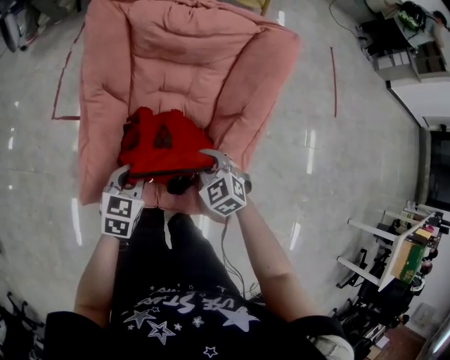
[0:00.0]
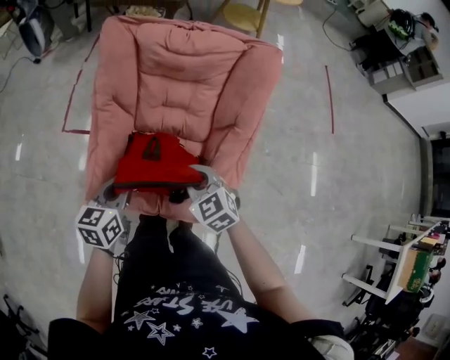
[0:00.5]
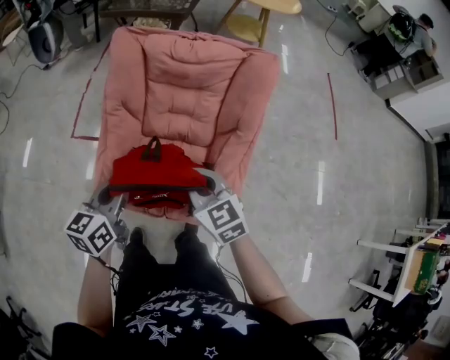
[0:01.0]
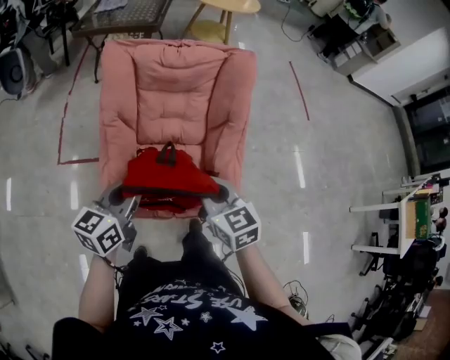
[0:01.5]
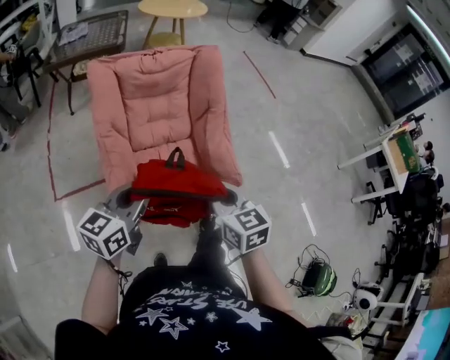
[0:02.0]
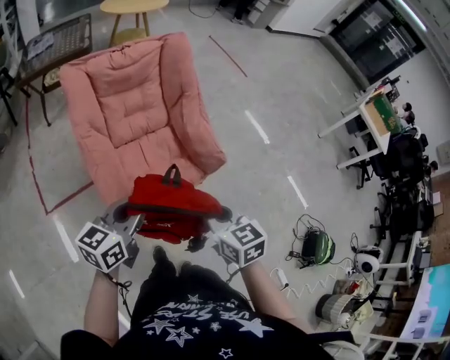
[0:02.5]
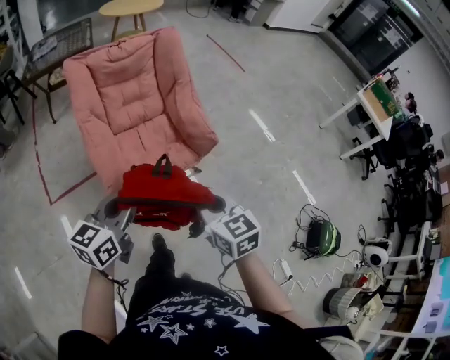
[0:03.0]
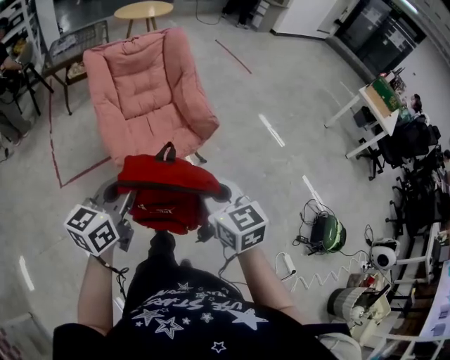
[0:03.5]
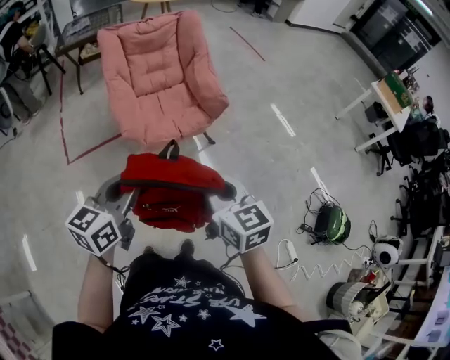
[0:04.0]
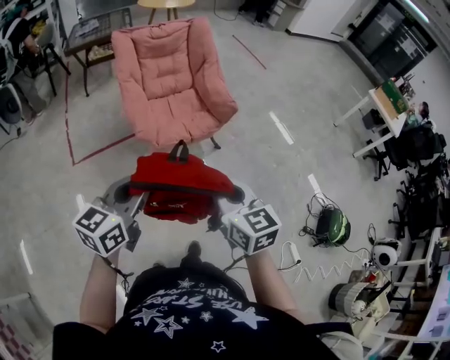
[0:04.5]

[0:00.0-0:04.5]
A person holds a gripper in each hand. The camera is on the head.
0:00.0 to 0:02.0: The right gripper shifts by approximately 35 cm, and changes its angle by some 60 degrees. Meanwhile the left gripper shifts roughly 25 cm upward, and tips its fingers upward by about 30 degrees.
0:02.0 to 0:04.5: Both grippers are carried backward, approximately 40 cm.

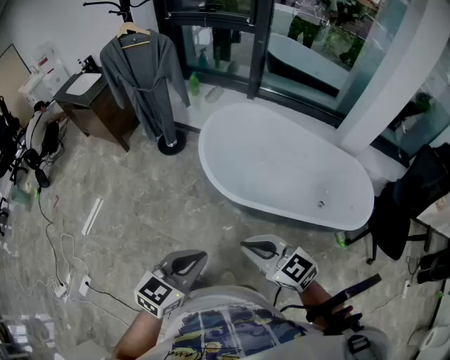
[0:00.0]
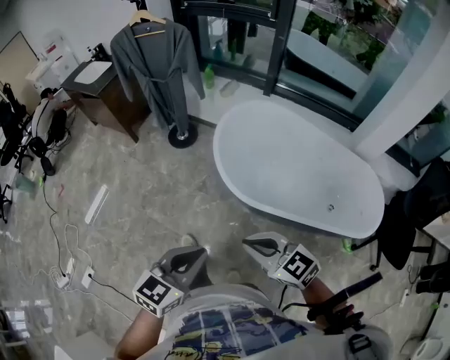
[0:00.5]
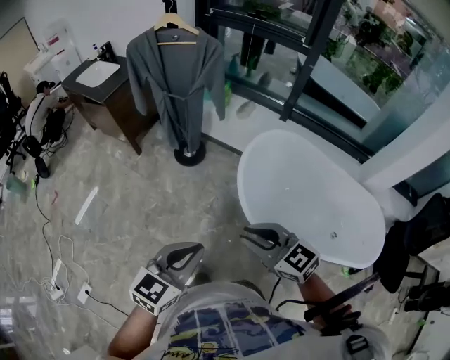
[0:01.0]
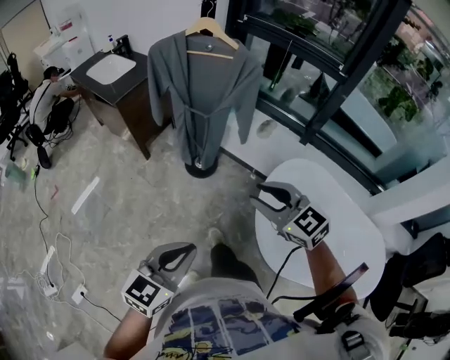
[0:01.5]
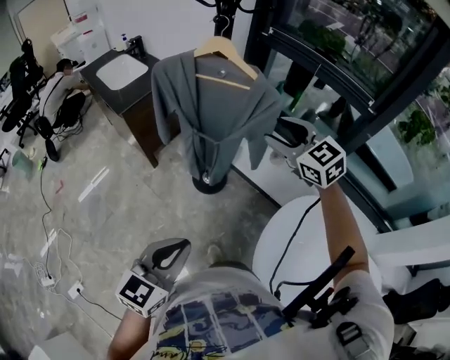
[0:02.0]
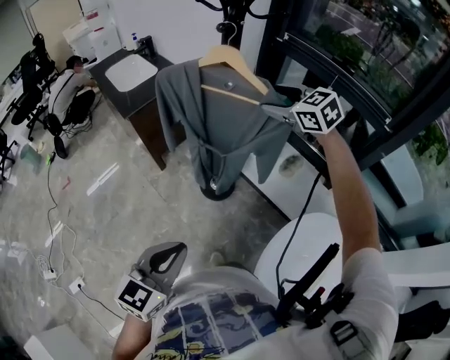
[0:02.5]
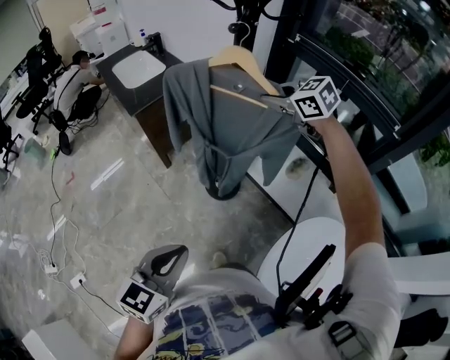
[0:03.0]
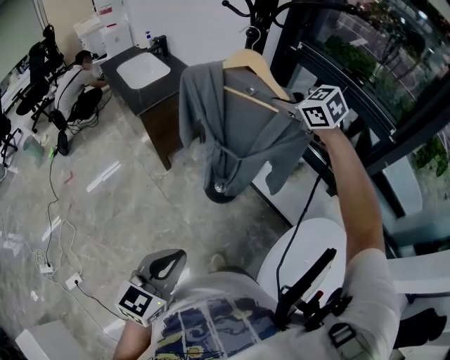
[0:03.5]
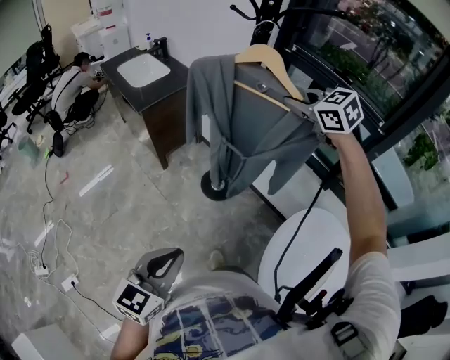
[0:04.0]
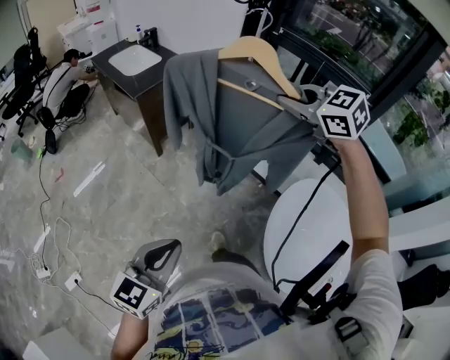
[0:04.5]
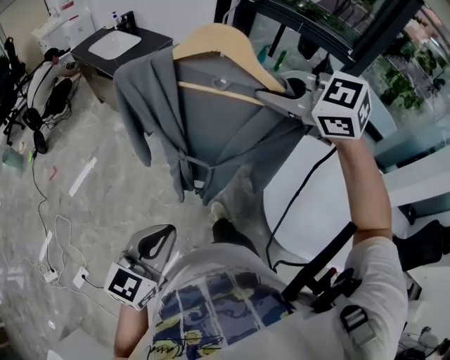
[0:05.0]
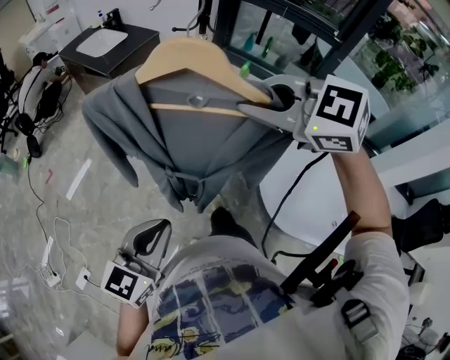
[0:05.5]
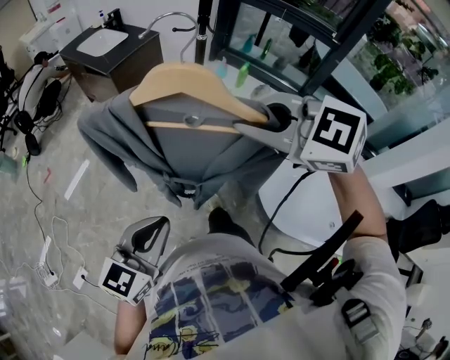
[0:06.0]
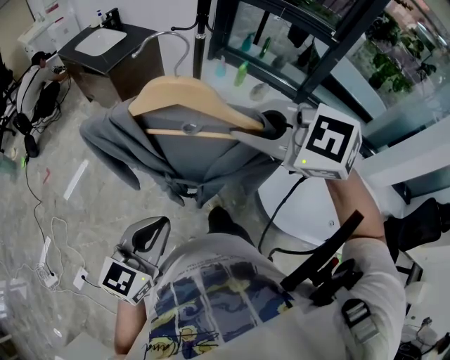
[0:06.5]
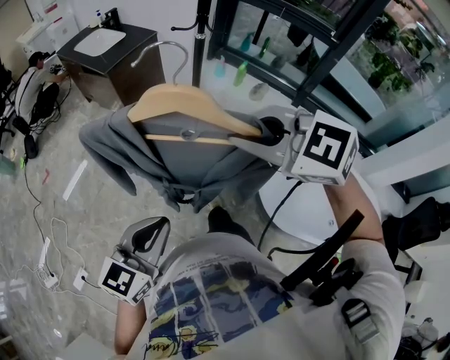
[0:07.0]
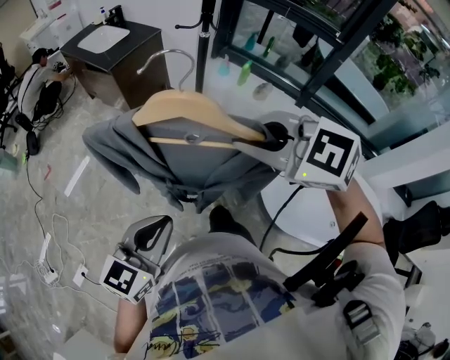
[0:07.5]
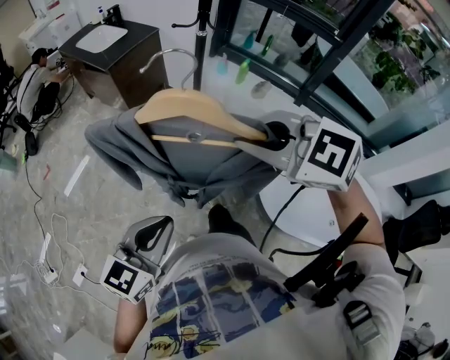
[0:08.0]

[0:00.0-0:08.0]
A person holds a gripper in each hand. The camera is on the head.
0:00.0 to 0:02.0: The two grippers travel together, forward, roughly 70 cm. The right gripper changes its angle by some 20 degrees, and opens. The left gripper rotates approximately 20 degrees.
0:02.0 to 0:04.0: The left gripper moves to the left, about 5 cm, and travels forward and back again, approximately 5 cm each way; the right gripper goes approximately 10 cm forward and upward, and closes its fingers.
0:04.0 to 0:06.0: The right gripper travels backward and to the left by roughly 50 cm. Meanwhile the left gripper moves backward and to the left, about 20 cm.
0:06.0 to 0:08.0: The grippers stay close to where they were, moving slightly.

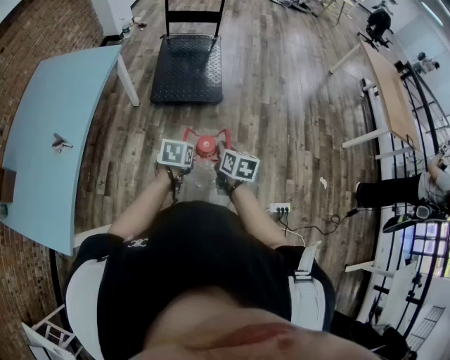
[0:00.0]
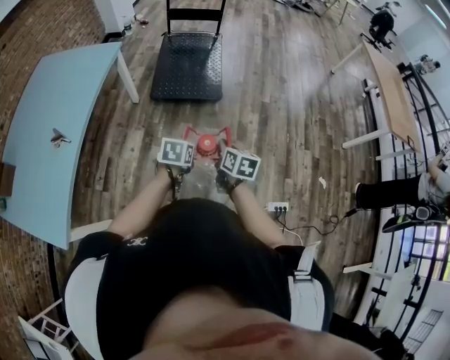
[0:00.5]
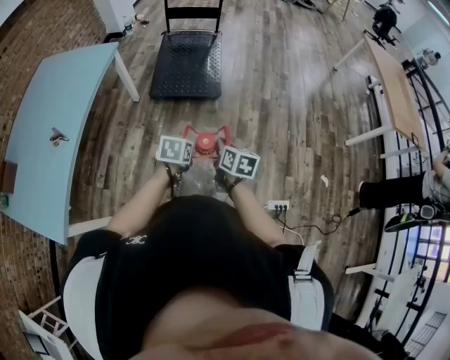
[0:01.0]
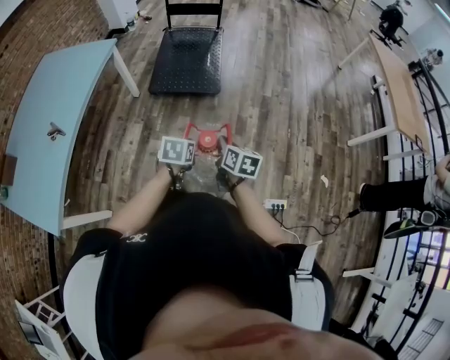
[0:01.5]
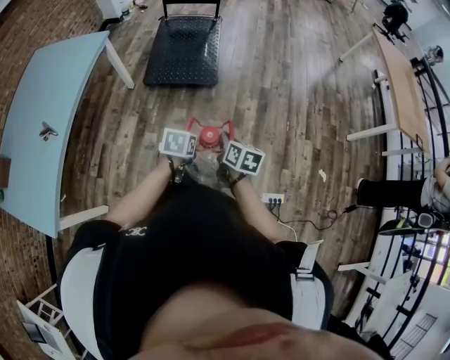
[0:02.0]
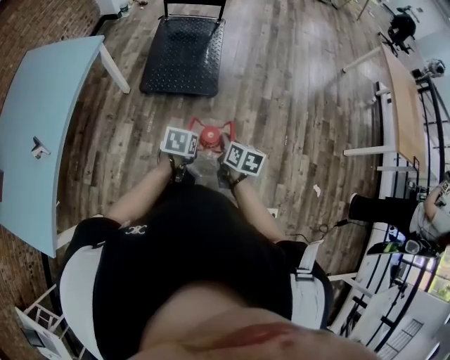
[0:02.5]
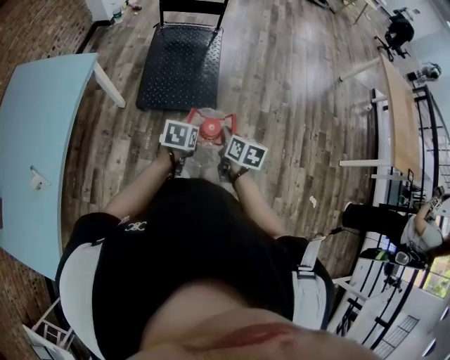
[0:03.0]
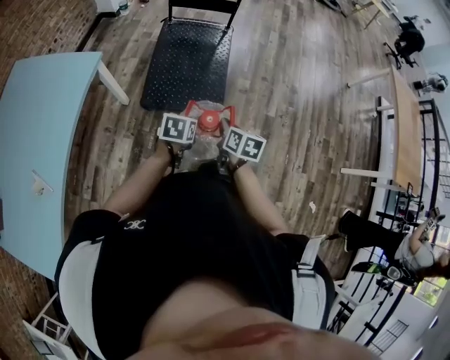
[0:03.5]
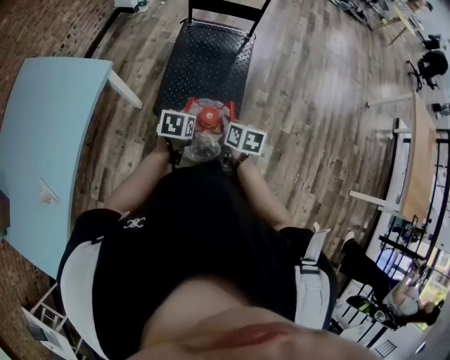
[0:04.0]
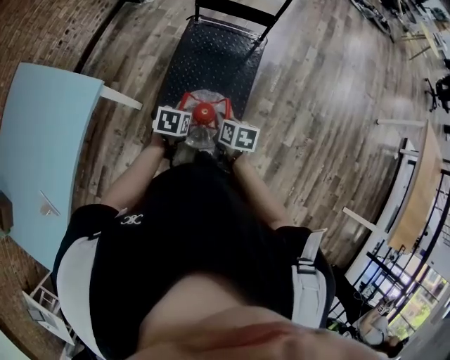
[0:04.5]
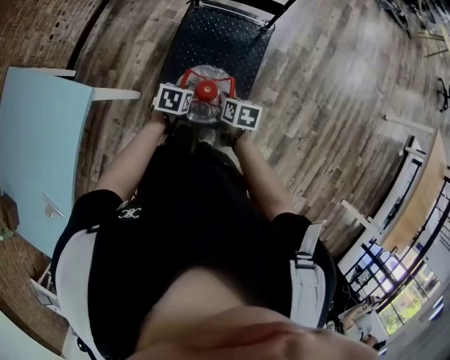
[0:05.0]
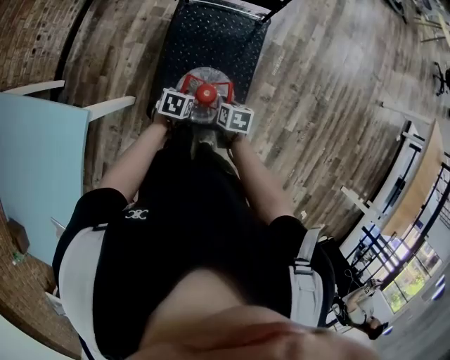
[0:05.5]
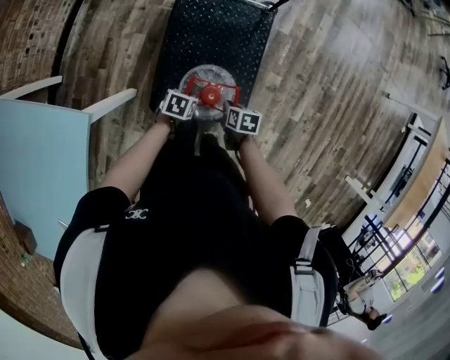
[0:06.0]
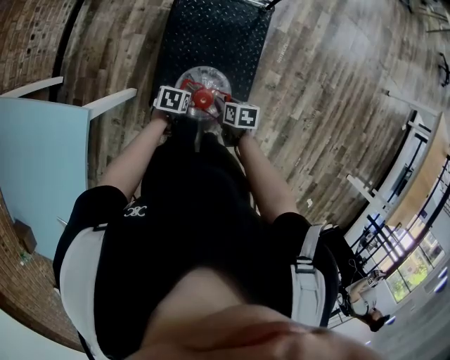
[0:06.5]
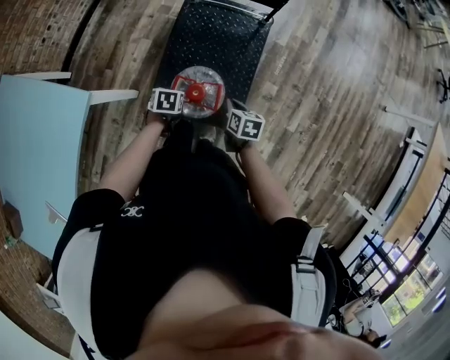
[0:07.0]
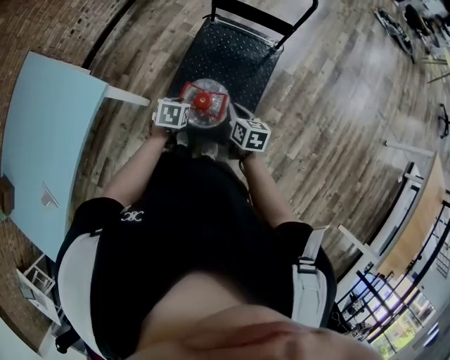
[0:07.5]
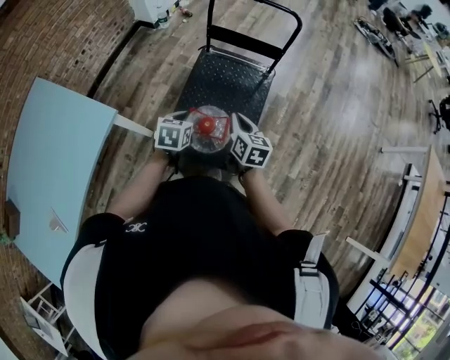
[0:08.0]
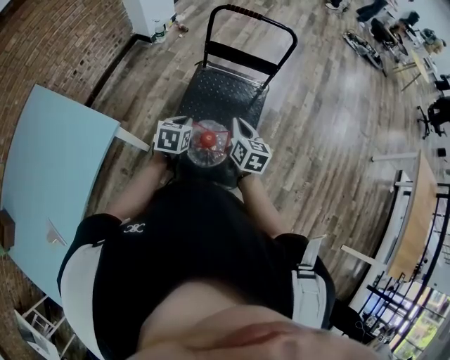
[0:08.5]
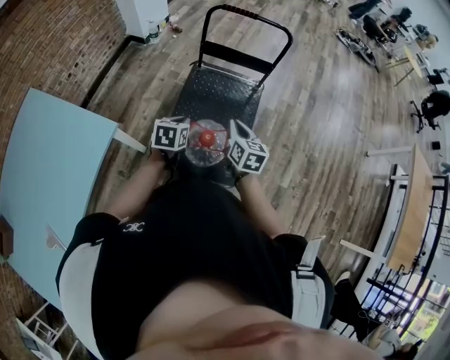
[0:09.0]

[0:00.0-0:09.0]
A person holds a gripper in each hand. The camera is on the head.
0:00.0 to 0:02.0: The grippers both shift to the right by approximately 10 cm.
0:02.0 to 0:04.5: The pair of grippers is taken forward, approximately 60 cm. The right gripper swivels roughly 20 degrees.
0:04.5 to 0:07.0: The right gripper shifts by roughly 15 cm, and opens, then closes once more; the left gripper moves roughly 15 cm.
0:07.0 to 0:09.0: The two grippers go roughly 20 cm upward. The left gripper changes its angle by roughly 30 degrees, while the right gripper rotates about 30 degrees.

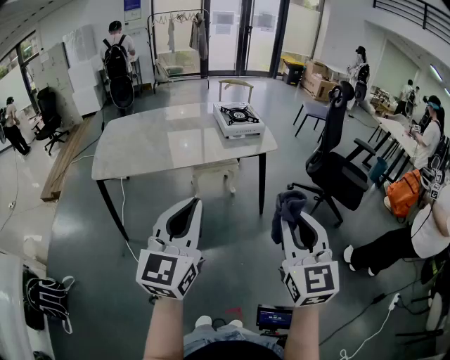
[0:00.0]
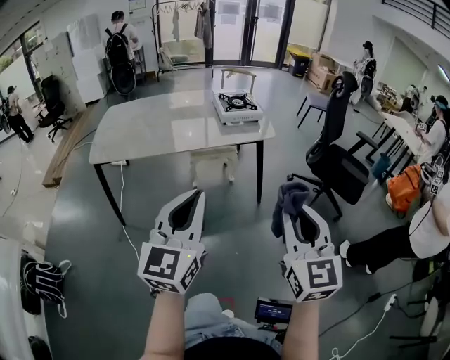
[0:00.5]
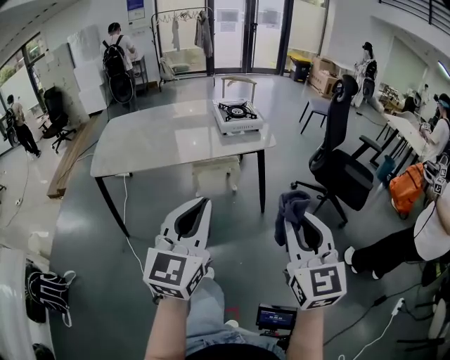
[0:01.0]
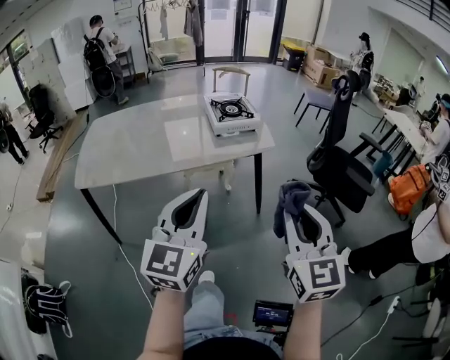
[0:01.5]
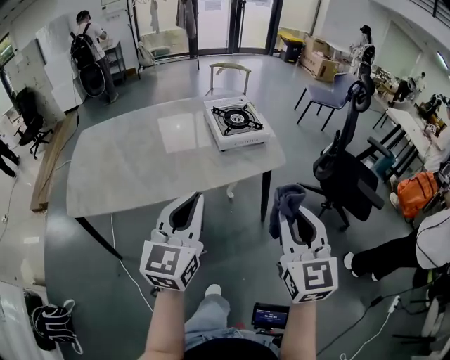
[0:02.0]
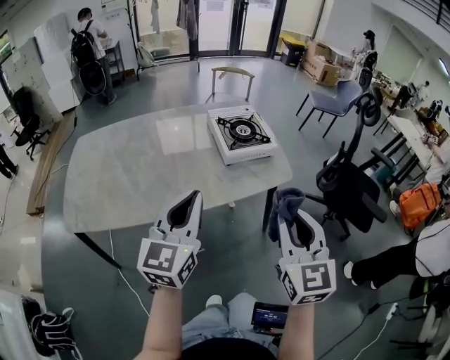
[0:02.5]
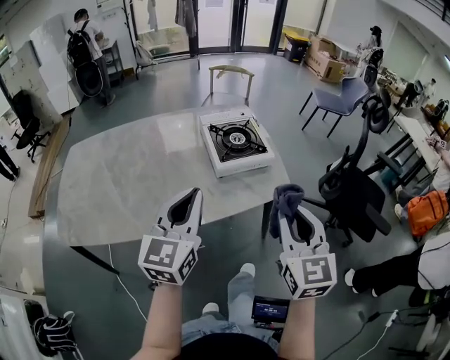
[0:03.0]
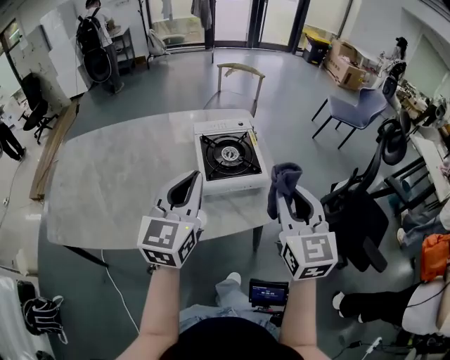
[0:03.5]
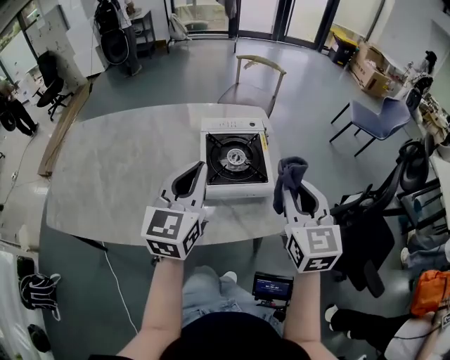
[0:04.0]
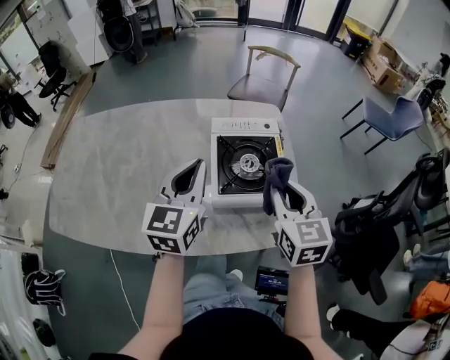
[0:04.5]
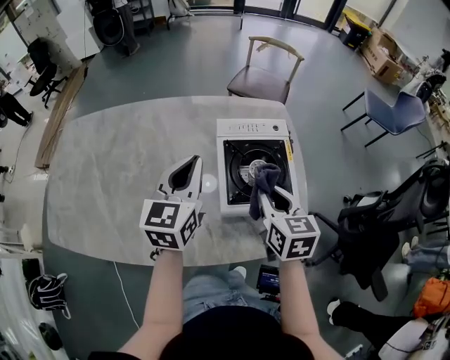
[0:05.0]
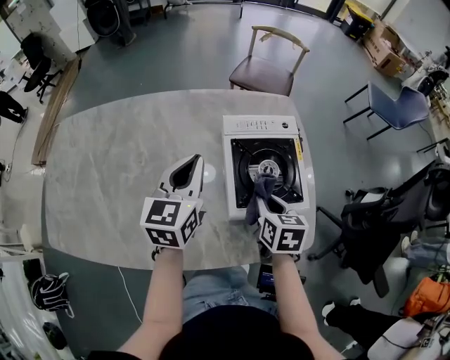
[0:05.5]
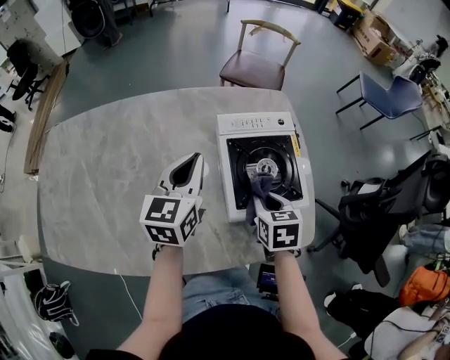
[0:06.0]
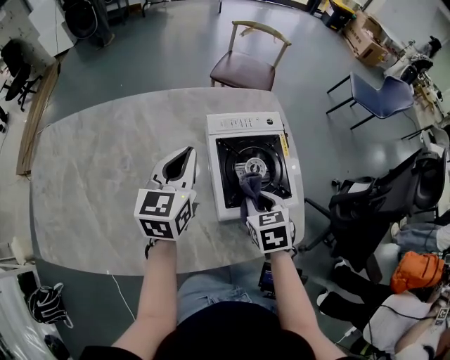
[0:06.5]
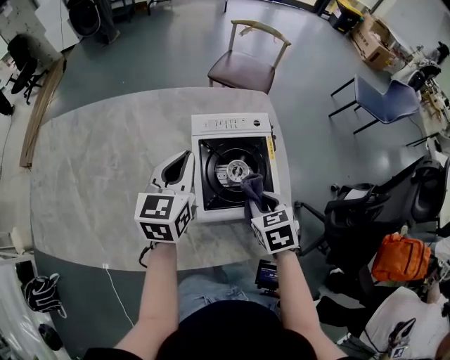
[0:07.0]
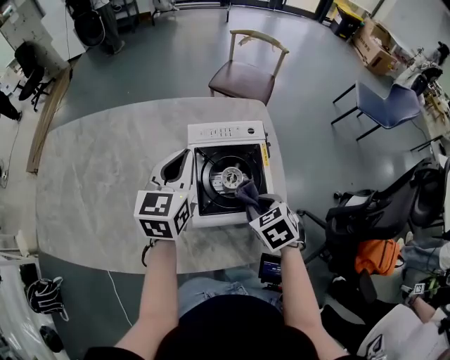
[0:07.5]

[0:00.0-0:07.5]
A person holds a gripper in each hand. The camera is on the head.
0:00.0 to 0:02.0: The grippers both shift forward by some 30 cm.
0:02.0 to 0:04.0: Both grippers move forward, about 40 cm.
0:04.0 to 0:05.5: The left gripper is displaced forward, to the left and downward by some 20 cm, while the right gripper travels downward, to the left and forward by some 25 cm, and tilts its fingers about 30 degrees downward.
0:05.5 to 0:07.5: The two grippers go about 10 cm to the right. The right gripper swivels about 40 degrees.
